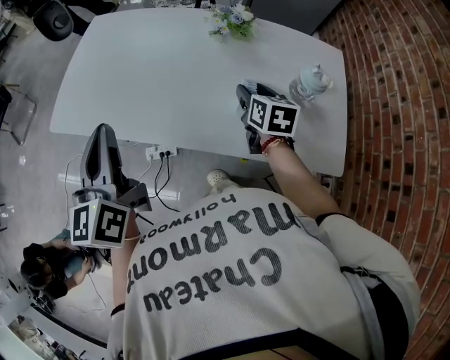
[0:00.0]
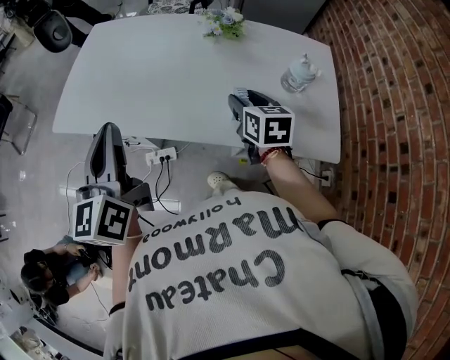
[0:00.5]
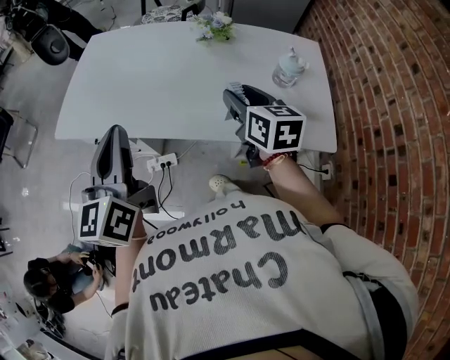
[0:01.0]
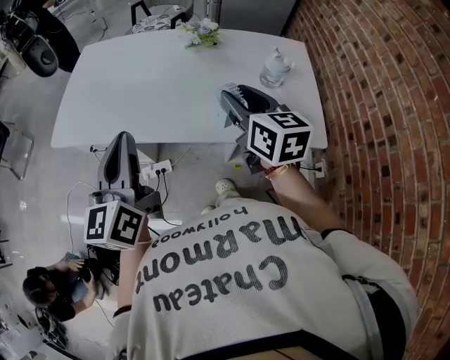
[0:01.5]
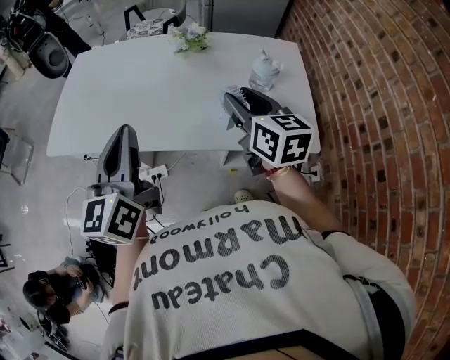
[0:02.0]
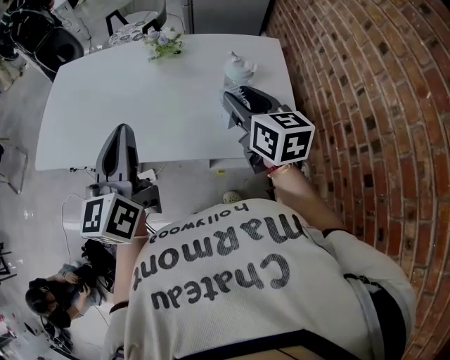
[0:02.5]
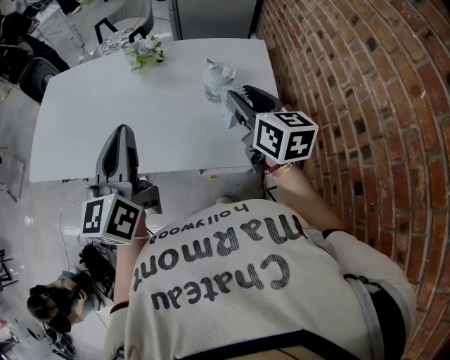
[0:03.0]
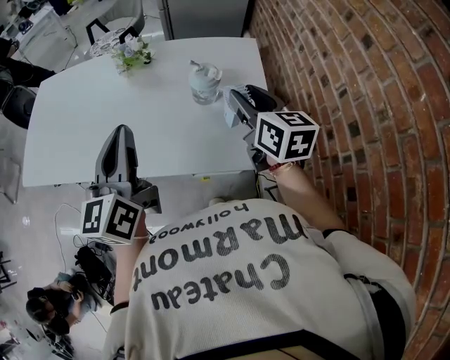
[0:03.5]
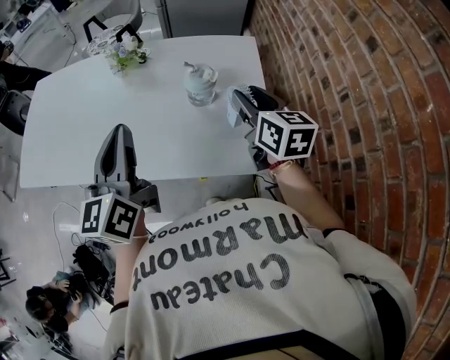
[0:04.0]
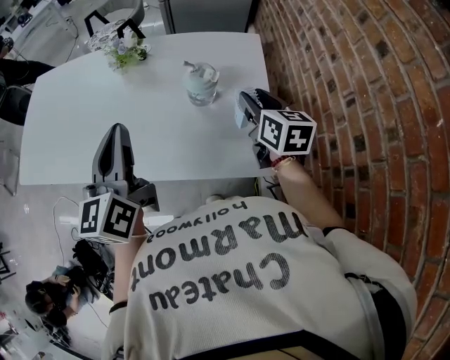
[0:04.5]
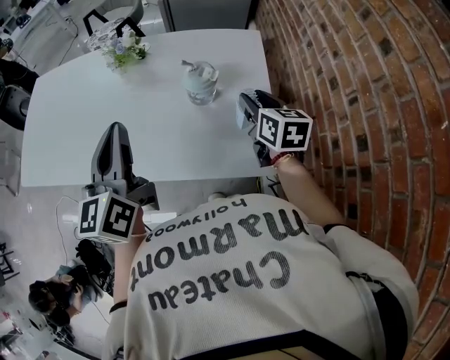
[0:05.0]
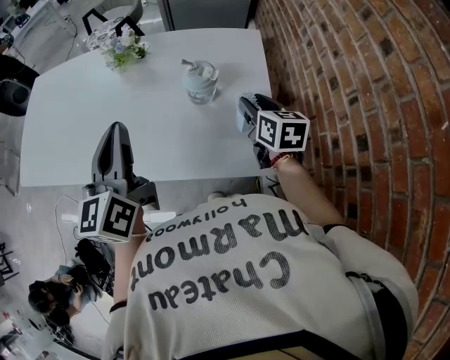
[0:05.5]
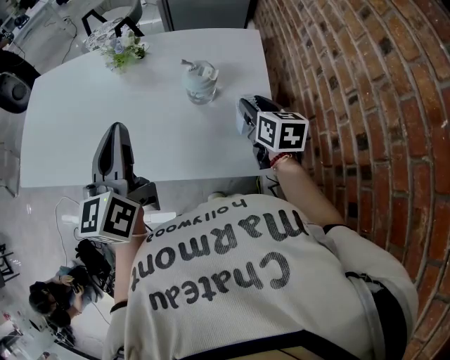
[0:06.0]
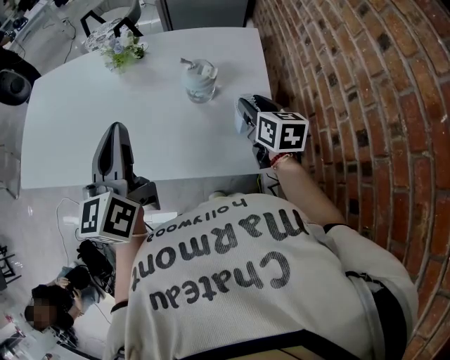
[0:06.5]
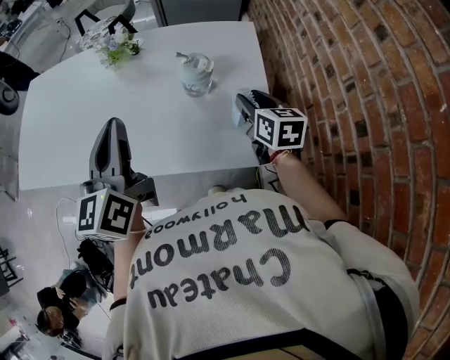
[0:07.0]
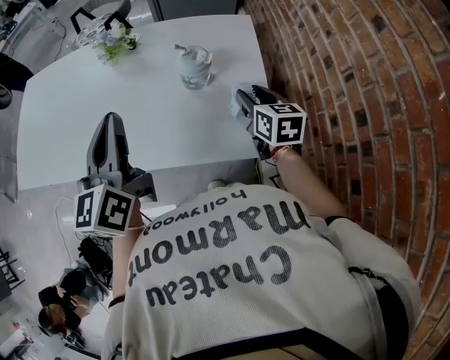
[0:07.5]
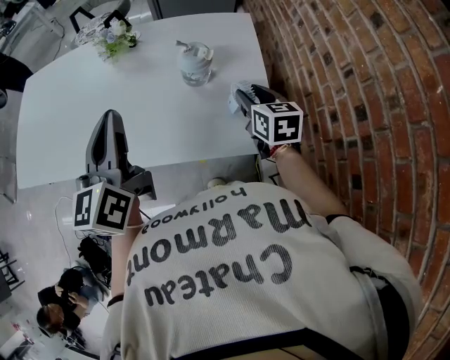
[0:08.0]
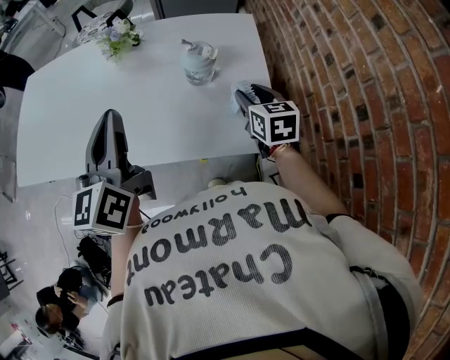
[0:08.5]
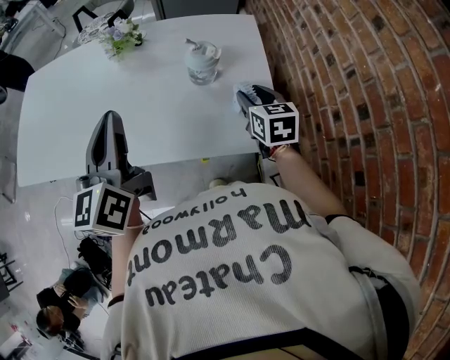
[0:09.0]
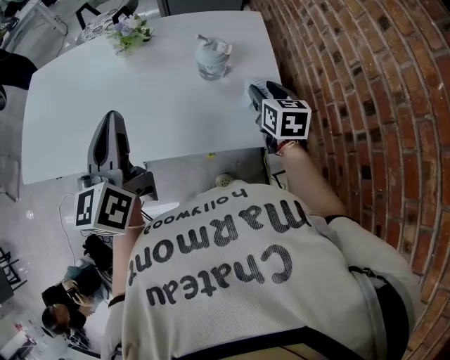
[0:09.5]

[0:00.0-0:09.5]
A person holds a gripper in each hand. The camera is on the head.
0:00.0 to 0:02.0: The right gripper shifts approximately 20 cm upward and backward. Meanwhile the left gripper travels to the right and backward by about 15 cm.
0:02.0 to 0:04.0: The two grippers go some 25 cm to the right.
0:04.0 to 0:05.5: The right gripper heads downward, covering roughly 10 cm.
0:05.5 to 0:07.5: The grippers move only a little.
0:07.5 to 0:09.5: The left gripper heads to the left, covering some 5 cm.

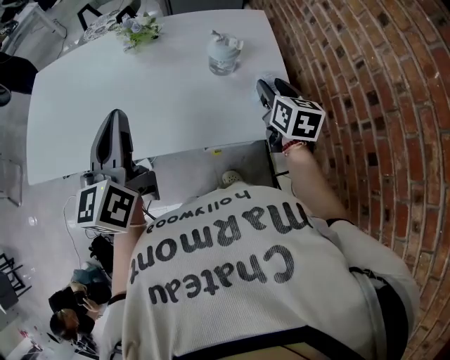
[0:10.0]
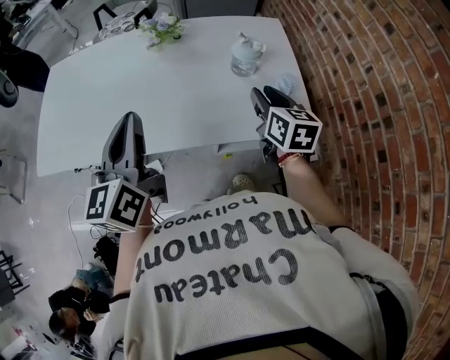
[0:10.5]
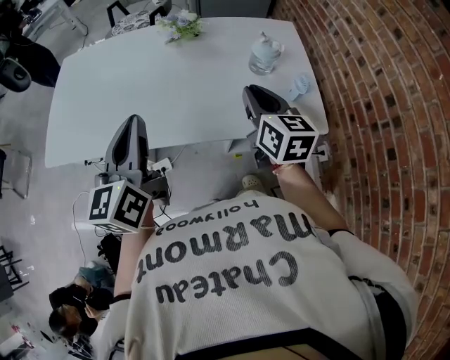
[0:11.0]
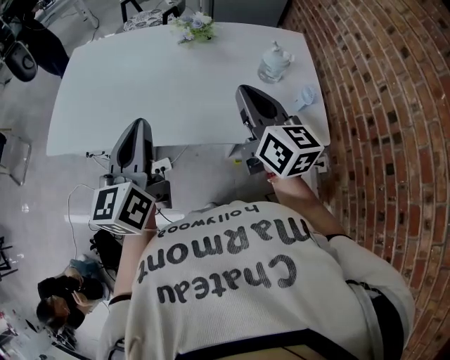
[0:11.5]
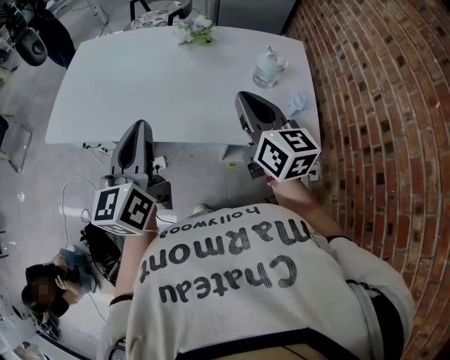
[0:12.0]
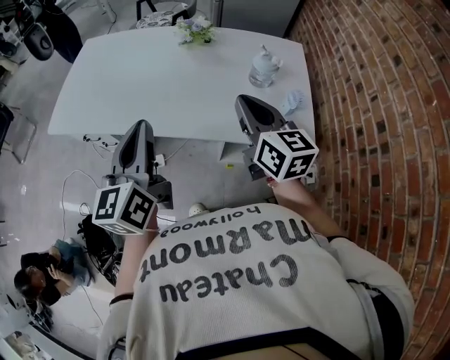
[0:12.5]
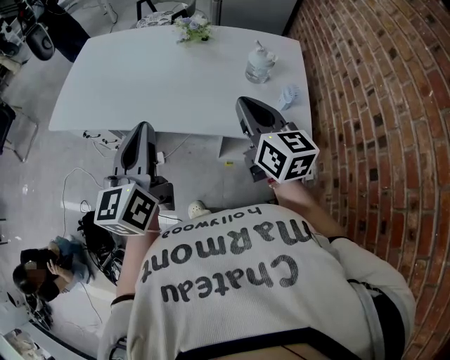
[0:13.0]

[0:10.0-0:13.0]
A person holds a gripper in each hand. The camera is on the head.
0:10.0 to 0:11.5: The left gripper shifts approximately 15 cm to the left and backward, while the right gripper travels to the left and upward by about 30 cm, swivels approximately 30 degrees, and closes.
0:11.5 to 0:13.0: The grippers both shift backward and to the right by about 10 cm.

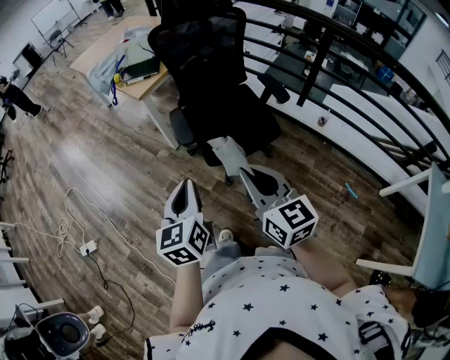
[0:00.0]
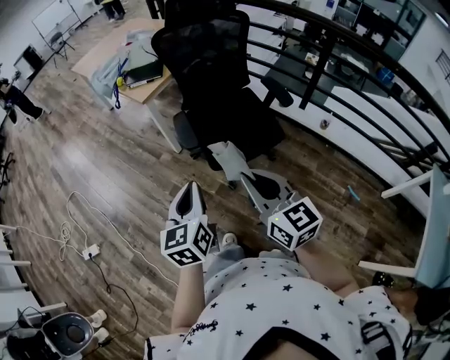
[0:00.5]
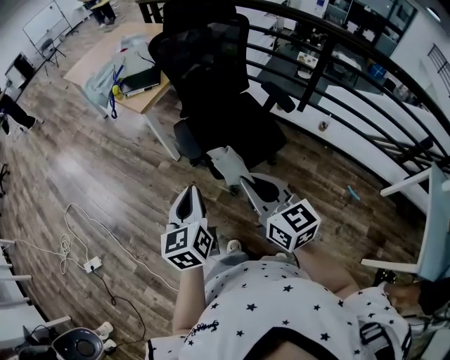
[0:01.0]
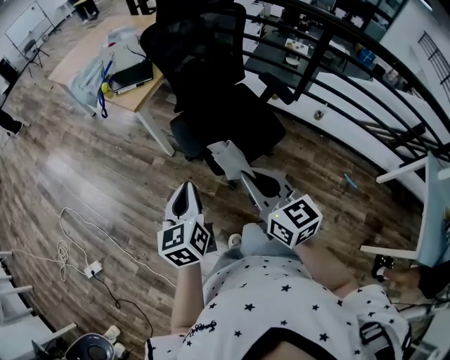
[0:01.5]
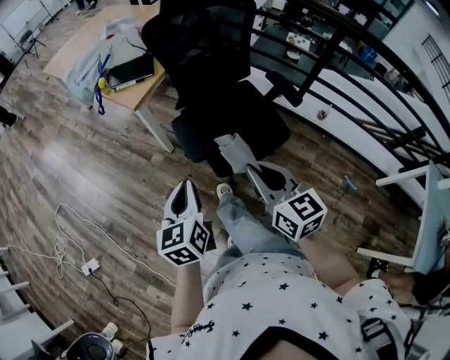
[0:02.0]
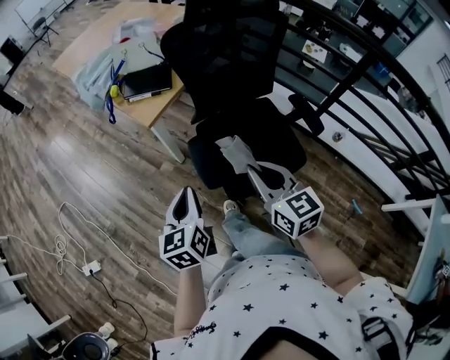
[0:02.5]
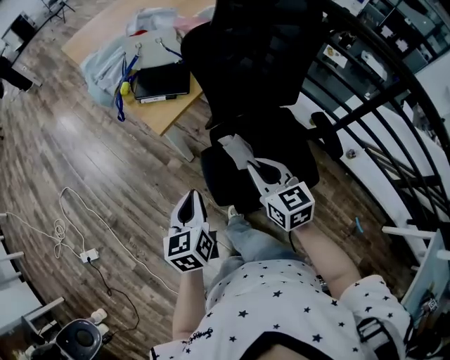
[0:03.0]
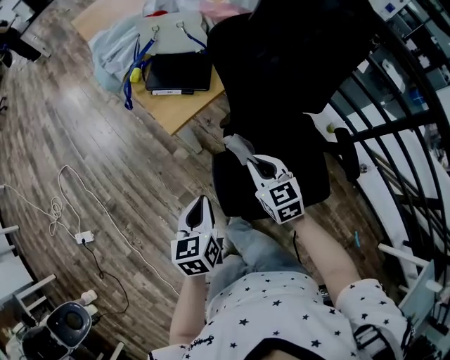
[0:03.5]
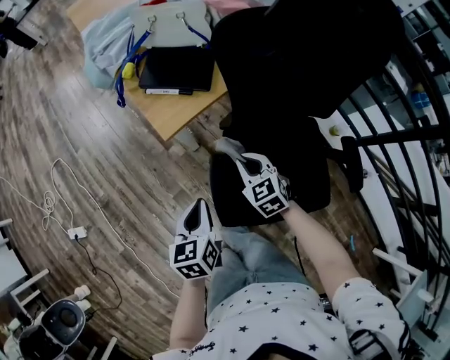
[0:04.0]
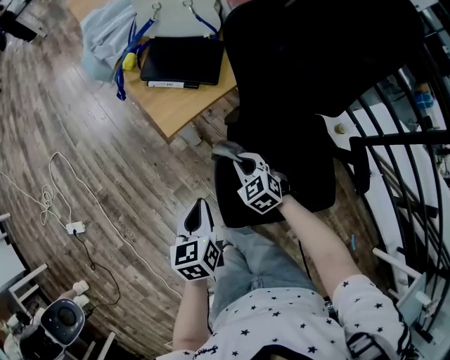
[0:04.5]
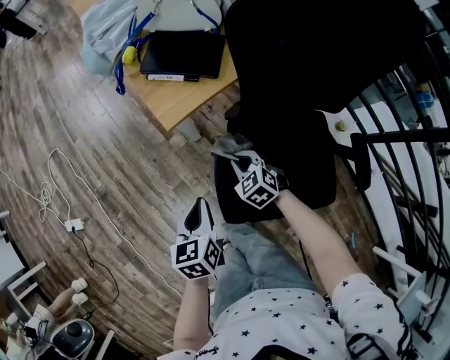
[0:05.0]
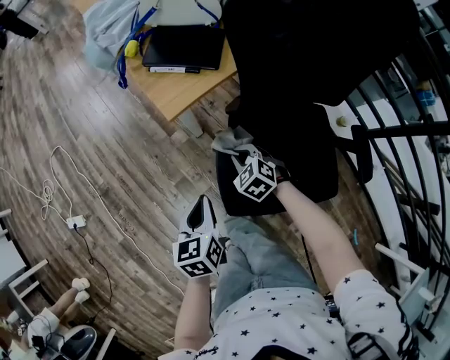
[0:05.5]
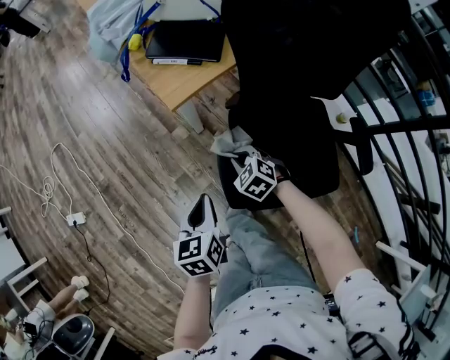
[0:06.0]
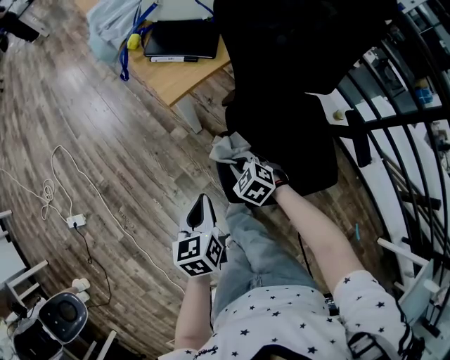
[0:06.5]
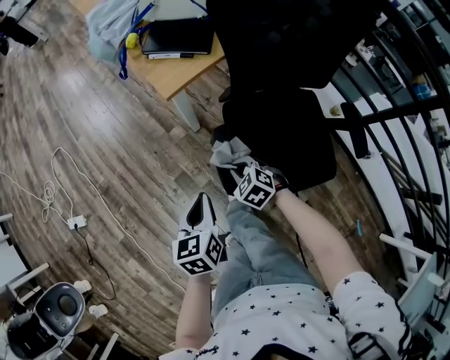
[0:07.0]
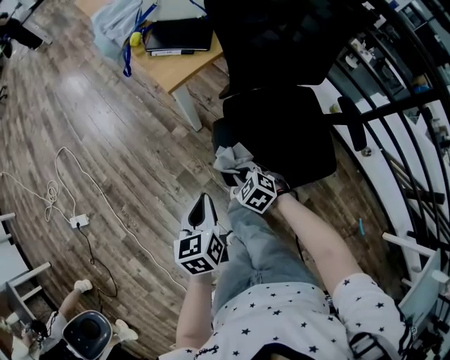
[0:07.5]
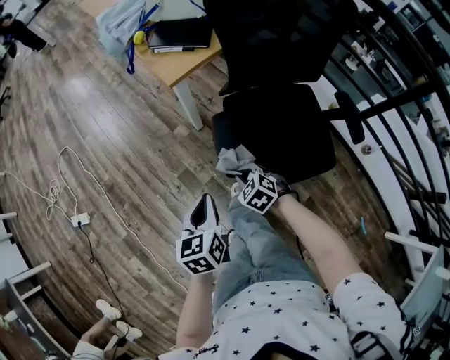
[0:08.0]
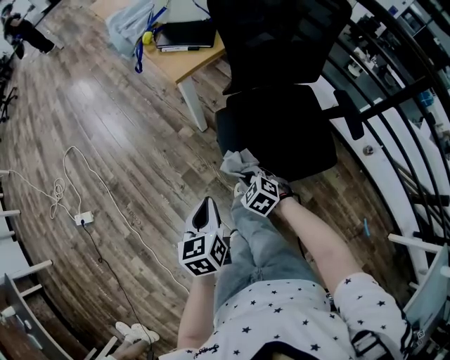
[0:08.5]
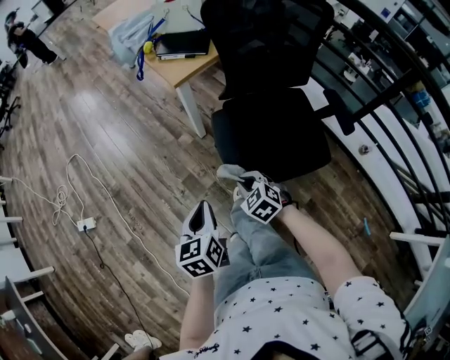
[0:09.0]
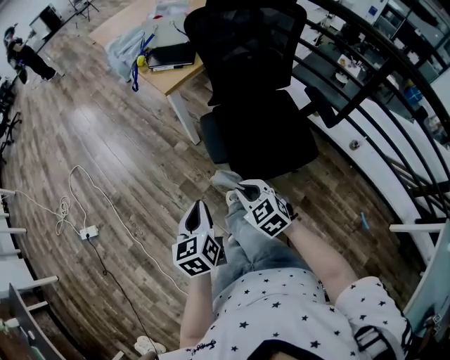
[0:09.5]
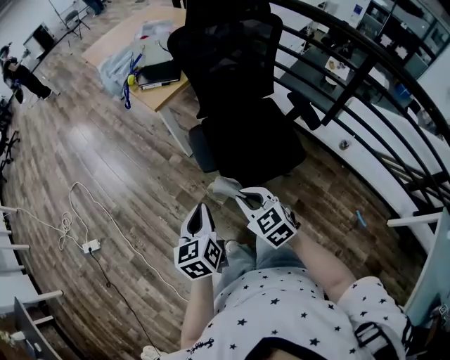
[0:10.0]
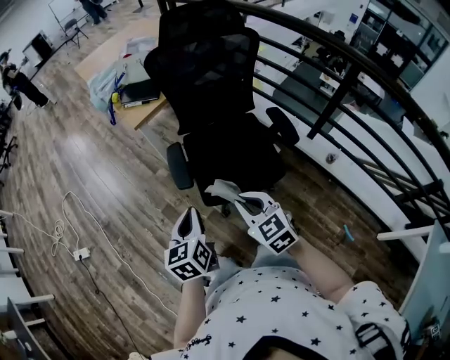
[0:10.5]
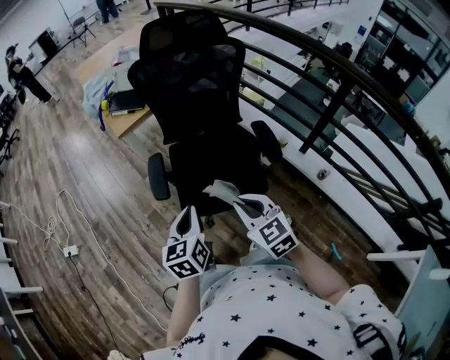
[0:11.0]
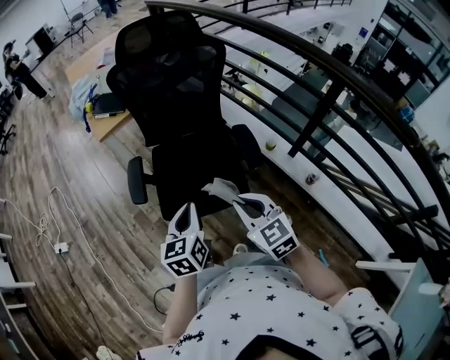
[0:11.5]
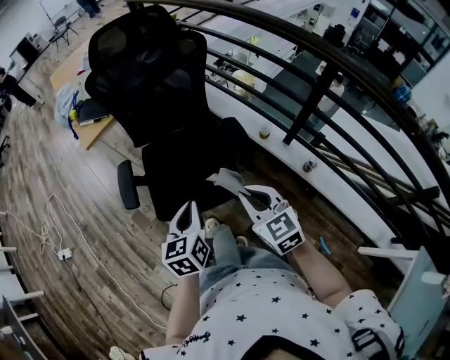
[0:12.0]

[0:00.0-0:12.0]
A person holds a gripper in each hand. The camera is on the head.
0:00.0 to 0:02.0: The grippers both shift forward by roughly 15 cm.
0:02.0 to 0:04.0: The left gripper shifts approximately 25 cm forward and downward, and turns by roughly 20 degrees. The right gripper shifts about 50 cm forward and downward, and swivels about 40 degrees.
0:04.0 to 0:06.0: The right gripper travels downward, to the left and backward by roughly 10 cm, and changes its angle by approximately 20 degrees. The left gripper goes roughly 5 cm backward.
0:06.0 to 0:08.0: The two grippers go some 15 cm backward.
0:08.0 to 0:10.0: The right gripper shifts about 30 cm upward and backward, and rotates approximately 30 degrees. The left gripper moves backward and upward, approximately 15 cm.
0:10.0 to 0:12.0: Both grippers travel together to the right, about 40 cm.

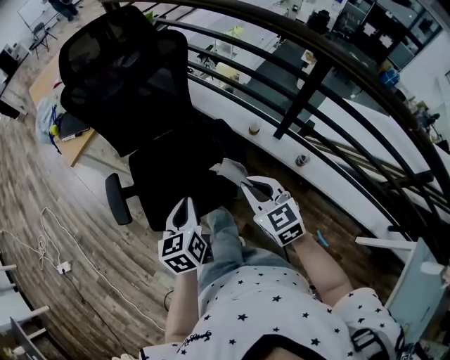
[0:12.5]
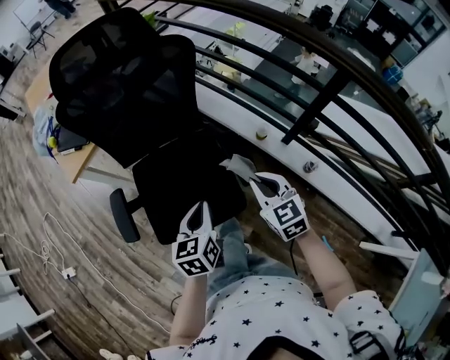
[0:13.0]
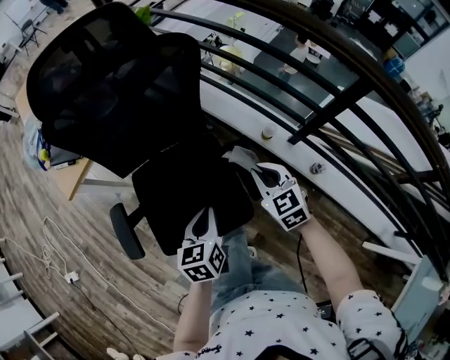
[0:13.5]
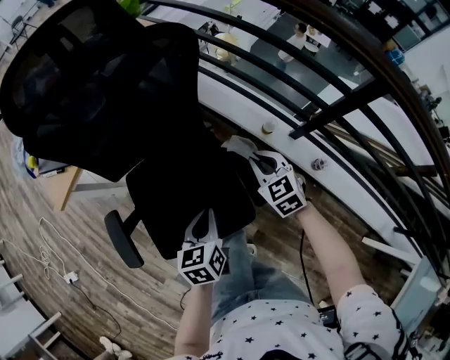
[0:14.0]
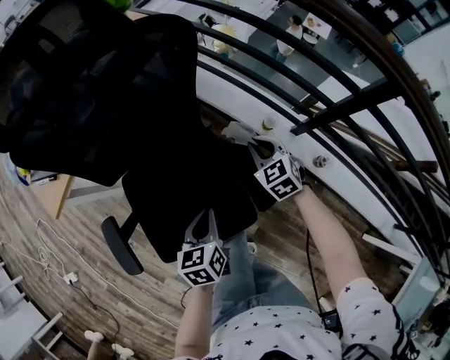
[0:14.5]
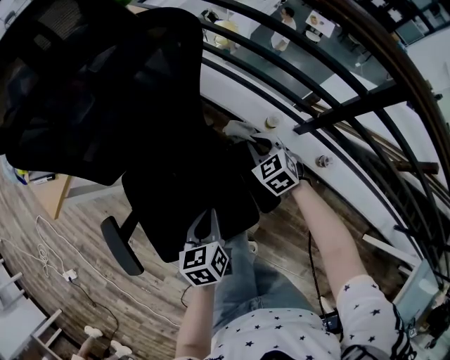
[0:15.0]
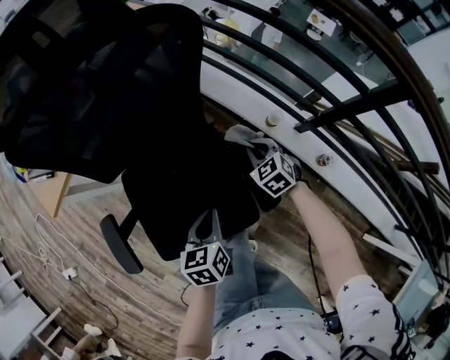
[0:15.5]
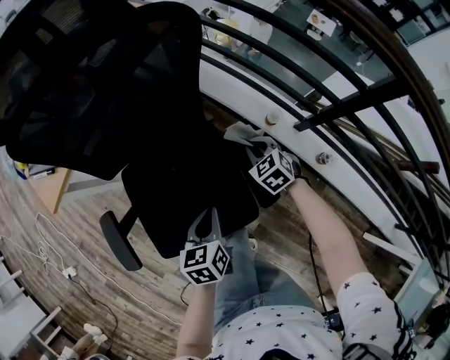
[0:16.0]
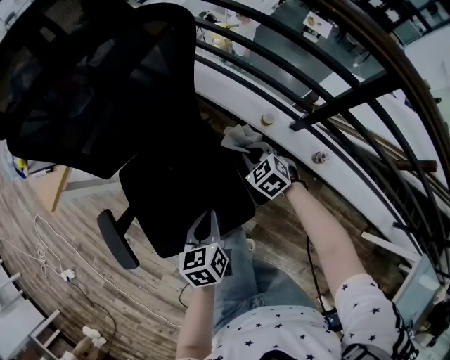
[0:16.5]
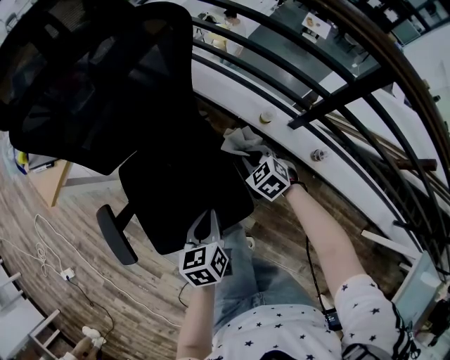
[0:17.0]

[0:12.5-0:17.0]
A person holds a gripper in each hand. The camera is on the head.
0:12.5 to 0:14.5: The right gripper travels forward and downward by about 35 cm; the left gripper is displaced forward and downward by some 20 cm.
0:14.5 to 0:17.0: The right gripper travels backward and downward by some 10 cm. Meanwhile the left gripper shifts by about 5 cm.
